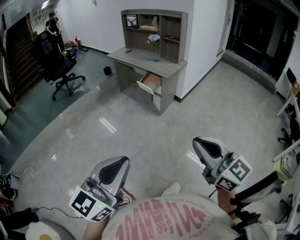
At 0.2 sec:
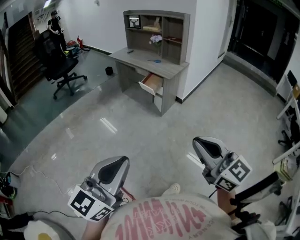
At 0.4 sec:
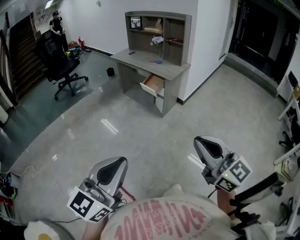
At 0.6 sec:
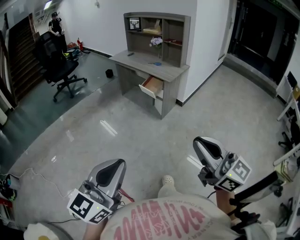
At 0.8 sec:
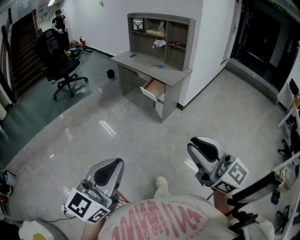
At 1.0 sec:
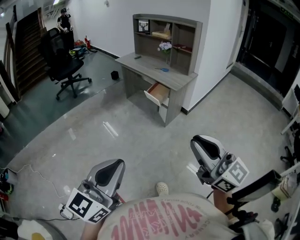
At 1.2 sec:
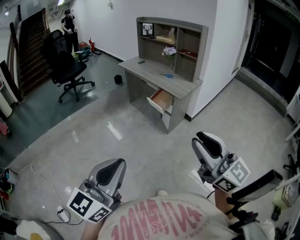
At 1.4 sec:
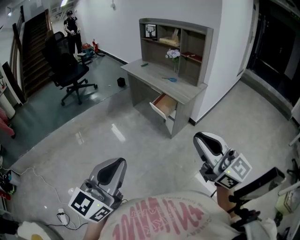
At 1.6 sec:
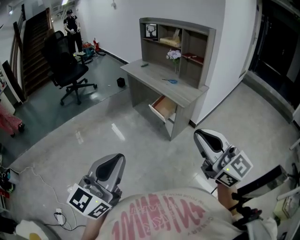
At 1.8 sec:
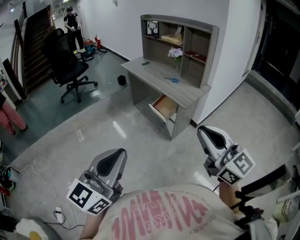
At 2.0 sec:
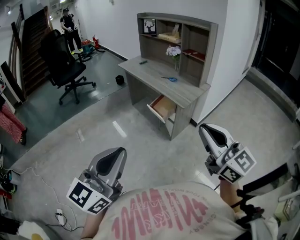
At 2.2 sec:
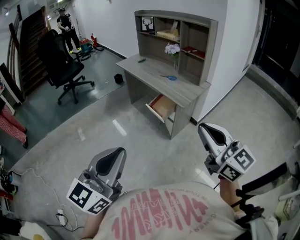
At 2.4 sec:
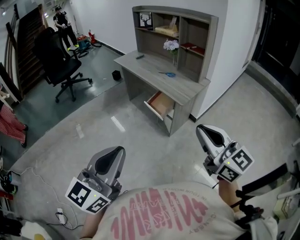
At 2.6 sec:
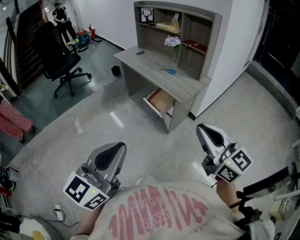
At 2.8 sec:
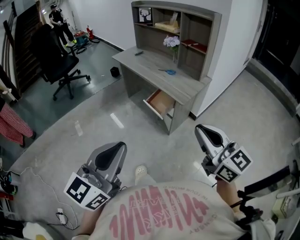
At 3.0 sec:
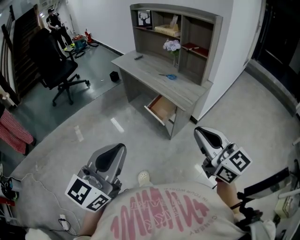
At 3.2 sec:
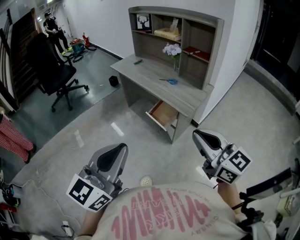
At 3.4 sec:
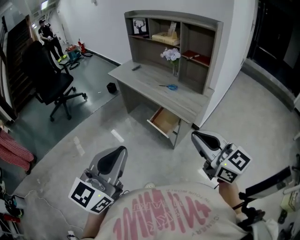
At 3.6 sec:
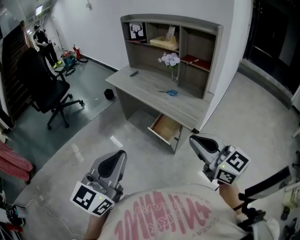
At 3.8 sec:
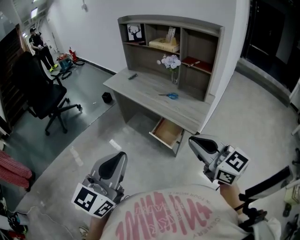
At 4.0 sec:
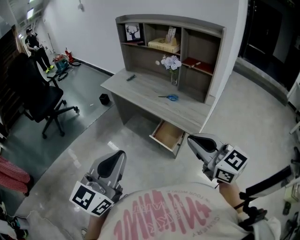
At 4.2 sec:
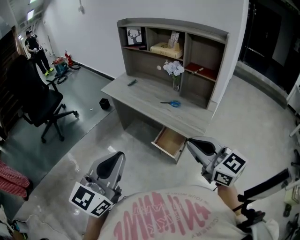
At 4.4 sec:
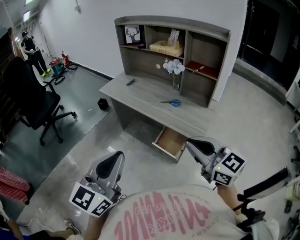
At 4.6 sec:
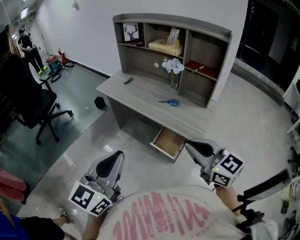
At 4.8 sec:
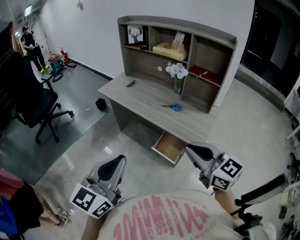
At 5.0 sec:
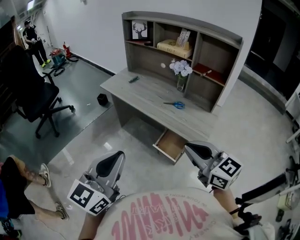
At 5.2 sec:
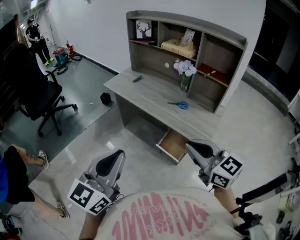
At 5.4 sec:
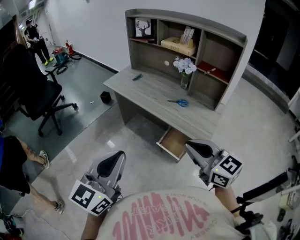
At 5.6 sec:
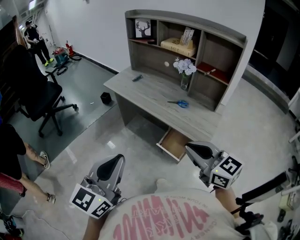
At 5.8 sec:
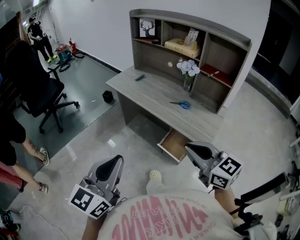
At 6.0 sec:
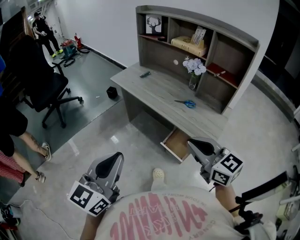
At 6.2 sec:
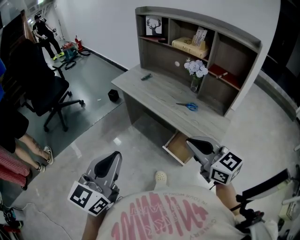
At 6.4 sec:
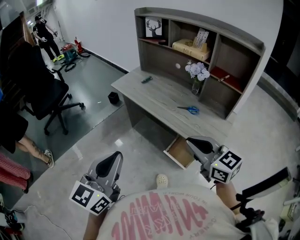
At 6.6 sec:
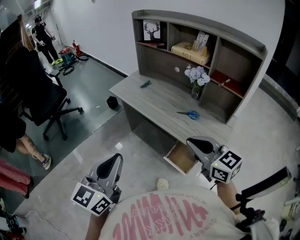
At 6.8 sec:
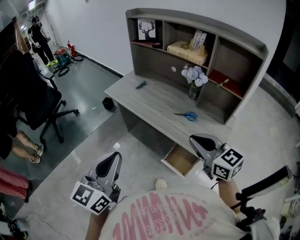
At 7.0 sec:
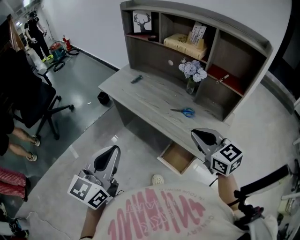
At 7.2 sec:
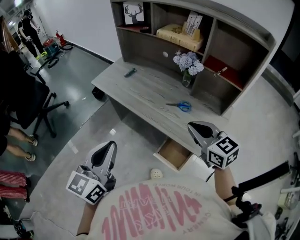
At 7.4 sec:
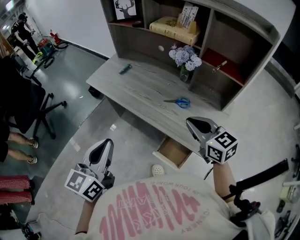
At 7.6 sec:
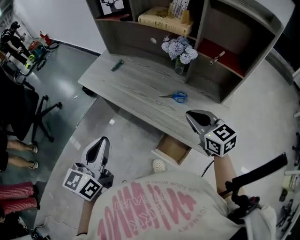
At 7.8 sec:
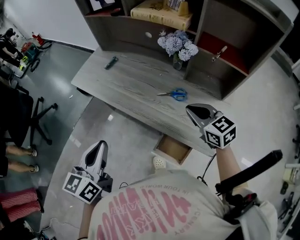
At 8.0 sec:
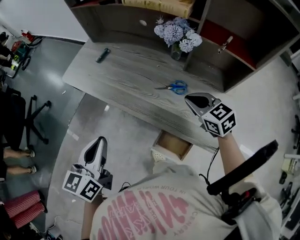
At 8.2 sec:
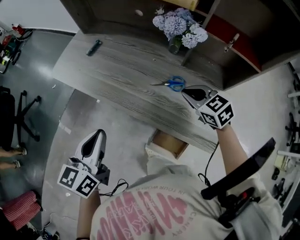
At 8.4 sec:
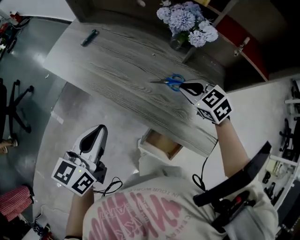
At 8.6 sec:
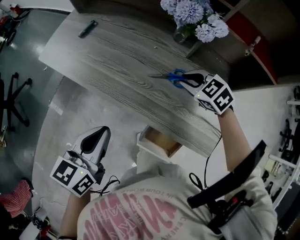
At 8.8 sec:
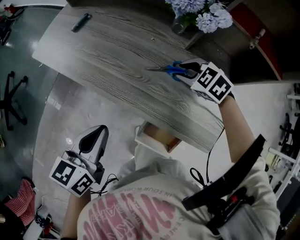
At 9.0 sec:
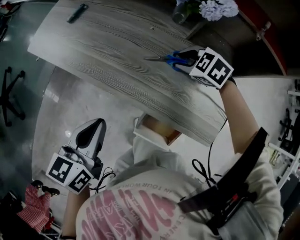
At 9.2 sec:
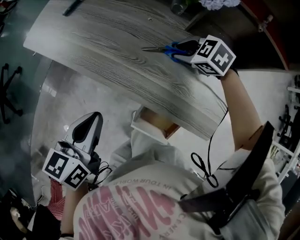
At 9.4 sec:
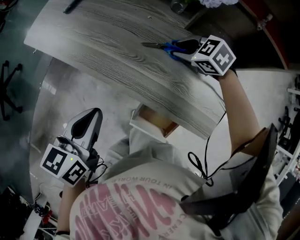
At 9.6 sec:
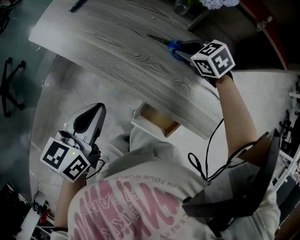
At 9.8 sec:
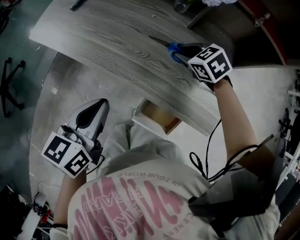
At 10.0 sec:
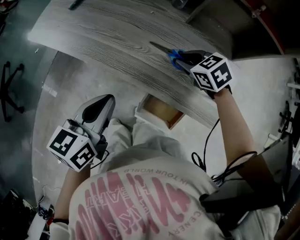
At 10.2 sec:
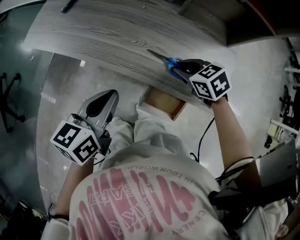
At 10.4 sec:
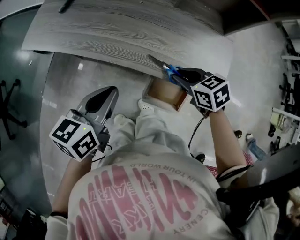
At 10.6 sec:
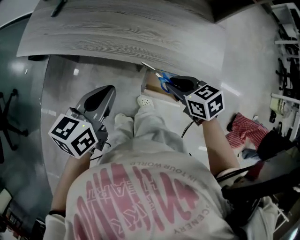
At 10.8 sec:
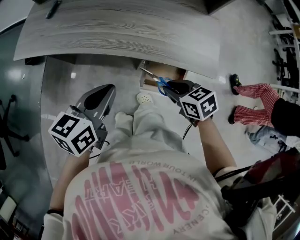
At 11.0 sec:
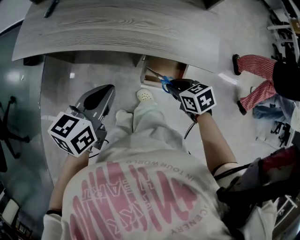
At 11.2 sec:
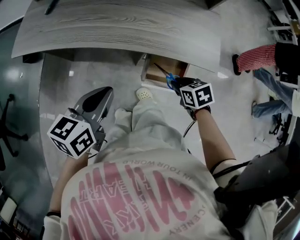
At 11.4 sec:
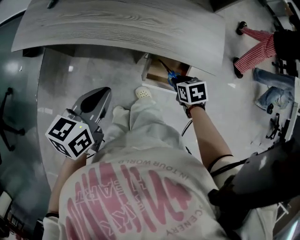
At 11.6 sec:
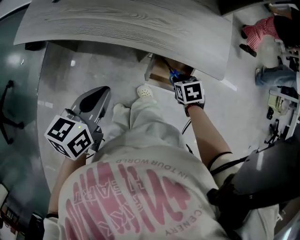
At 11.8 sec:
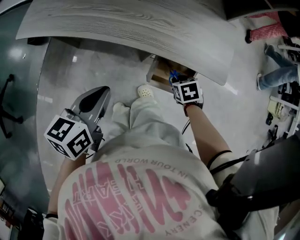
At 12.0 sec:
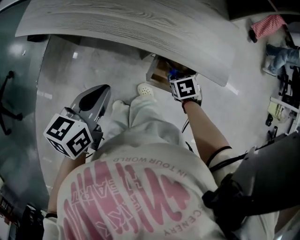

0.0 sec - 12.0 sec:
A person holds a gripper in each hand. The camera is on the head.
0.0 sec - 1.6 sec: Both grippers travel together forward, about 30 cm.
1.6 sec - 3.0 sec: Both grippers move forward, about 15 cm.
3.0 sec - 4.4 sec: Both grippers travel together forward and to the left, about 30 cm.
4.4 sec - 6.0 sec: The right gripper goes roughly 5 cm forward. The left gripper moves roughly 5 cm.
6.0 sec - 7.6 sec: The right gripper goes approximately 30 cm forward, to the right and downward. The left gripper heads forward, covering roughly 25 cm.
7.6 sec - 9.0 sec: The left gripper goes roughly 20 cm downward, forward and to the right, and swivels approximately 30 degrees. The right gripper travels downward and forward by roughly 25 cm, tilts its fingers roughly 40 degrees downward, and opens.
9.0 sec - 10.4 sec: The right gripper heads backward, covering some 20 cm, and rolls clockwise, seen from behind, by some 40 degrees.
10.4 sec - 12.0 sec: The left gripper shifts by roughly 5 cm. The right gripper travels downward by roughly 15 cm, and rotates roughly 30 degrees.

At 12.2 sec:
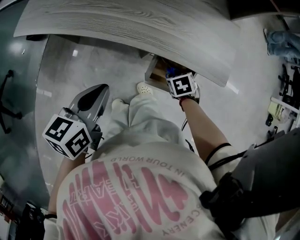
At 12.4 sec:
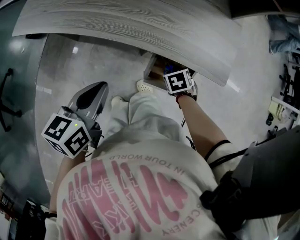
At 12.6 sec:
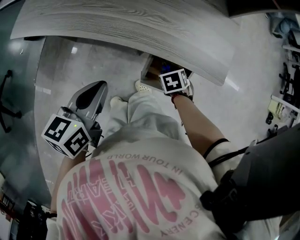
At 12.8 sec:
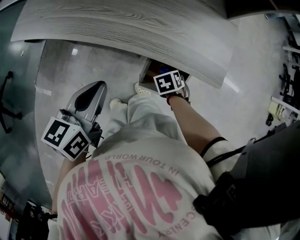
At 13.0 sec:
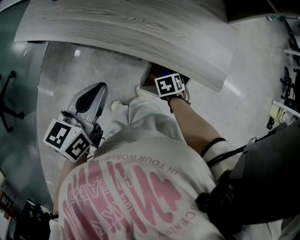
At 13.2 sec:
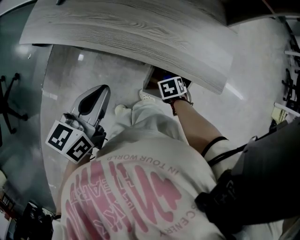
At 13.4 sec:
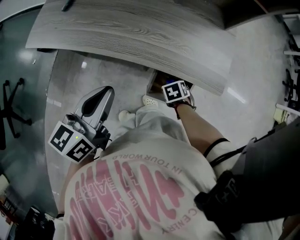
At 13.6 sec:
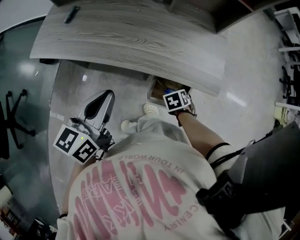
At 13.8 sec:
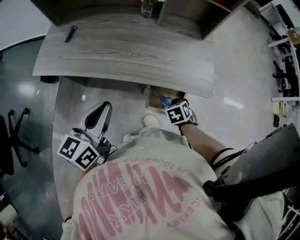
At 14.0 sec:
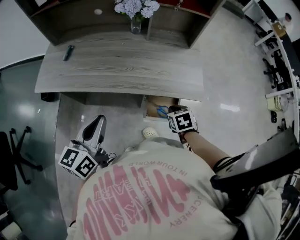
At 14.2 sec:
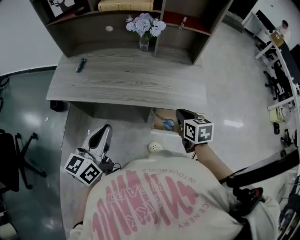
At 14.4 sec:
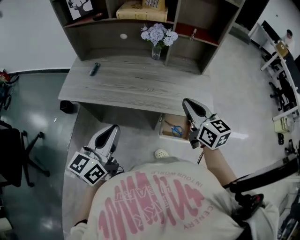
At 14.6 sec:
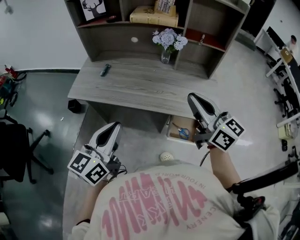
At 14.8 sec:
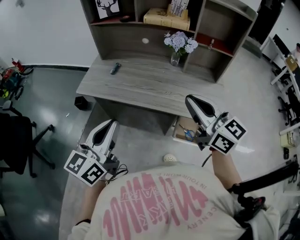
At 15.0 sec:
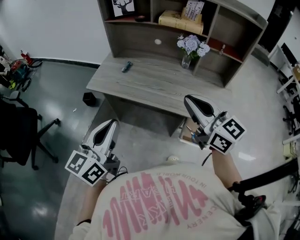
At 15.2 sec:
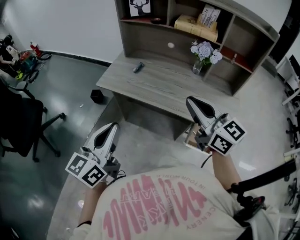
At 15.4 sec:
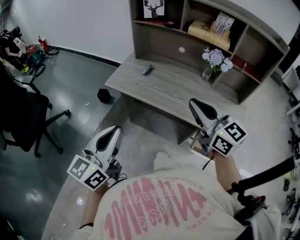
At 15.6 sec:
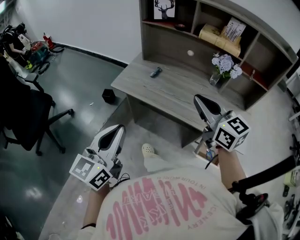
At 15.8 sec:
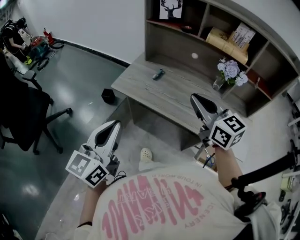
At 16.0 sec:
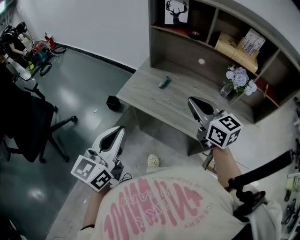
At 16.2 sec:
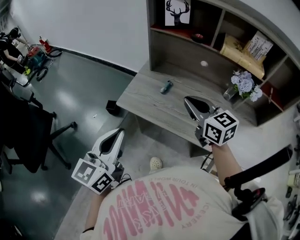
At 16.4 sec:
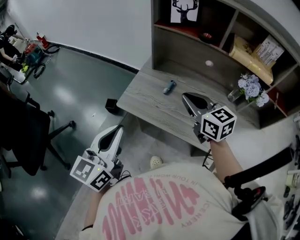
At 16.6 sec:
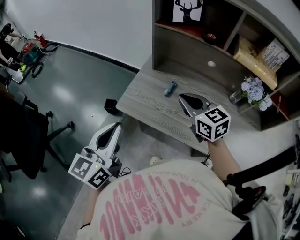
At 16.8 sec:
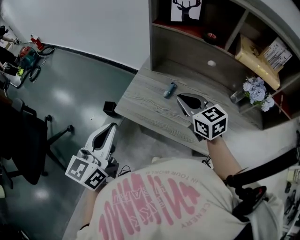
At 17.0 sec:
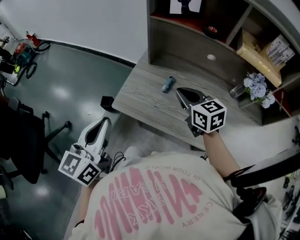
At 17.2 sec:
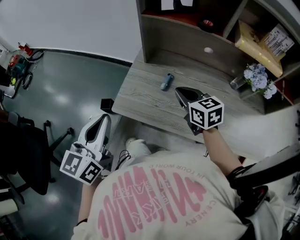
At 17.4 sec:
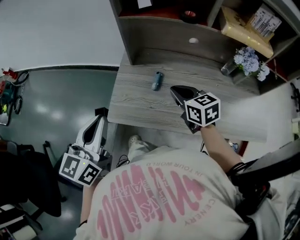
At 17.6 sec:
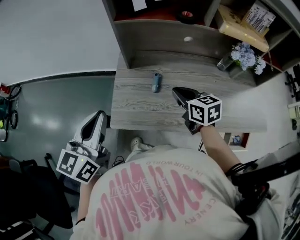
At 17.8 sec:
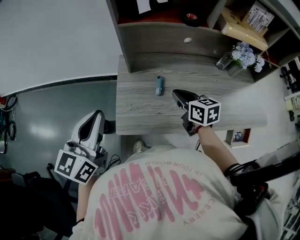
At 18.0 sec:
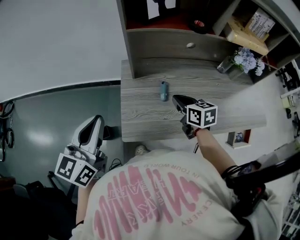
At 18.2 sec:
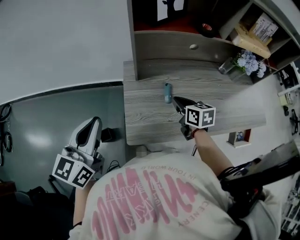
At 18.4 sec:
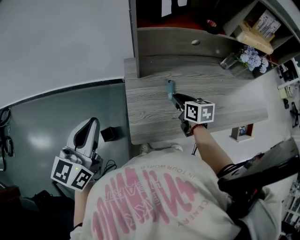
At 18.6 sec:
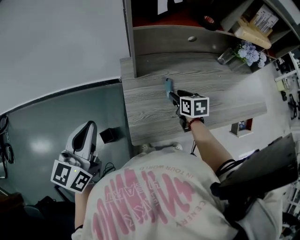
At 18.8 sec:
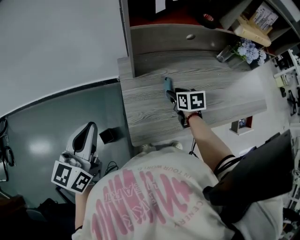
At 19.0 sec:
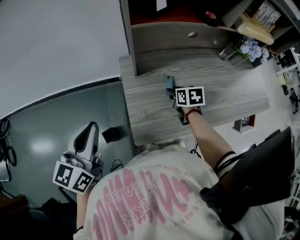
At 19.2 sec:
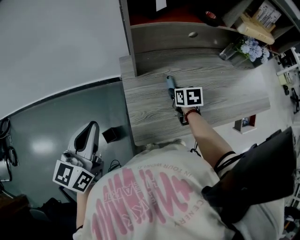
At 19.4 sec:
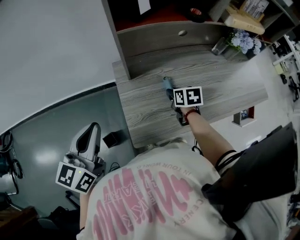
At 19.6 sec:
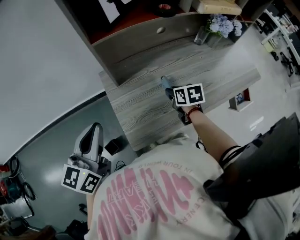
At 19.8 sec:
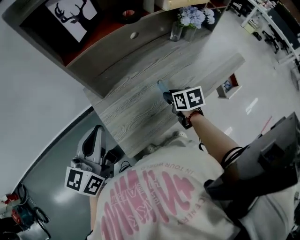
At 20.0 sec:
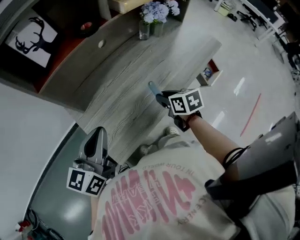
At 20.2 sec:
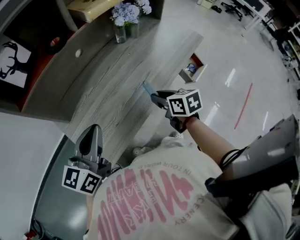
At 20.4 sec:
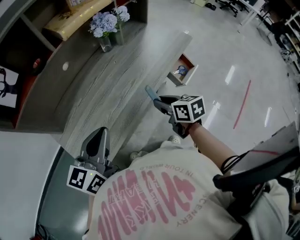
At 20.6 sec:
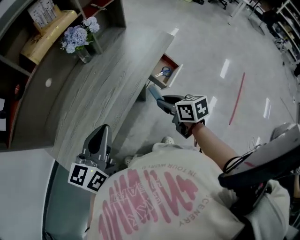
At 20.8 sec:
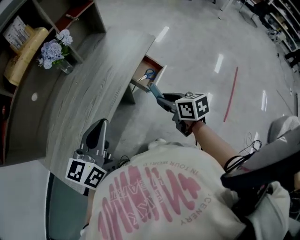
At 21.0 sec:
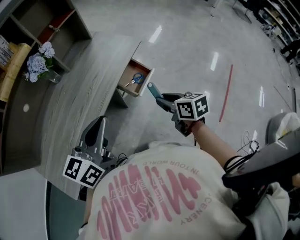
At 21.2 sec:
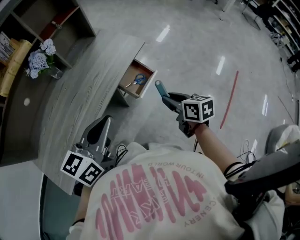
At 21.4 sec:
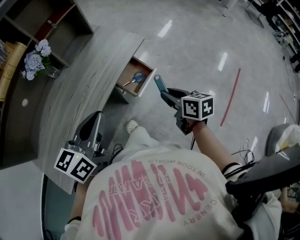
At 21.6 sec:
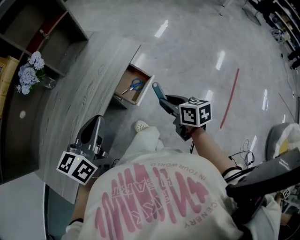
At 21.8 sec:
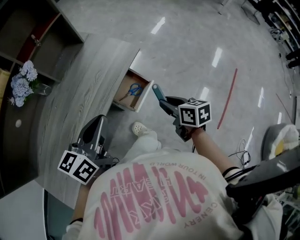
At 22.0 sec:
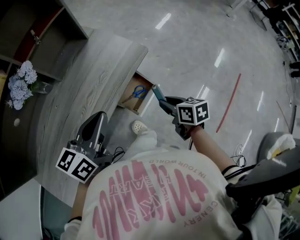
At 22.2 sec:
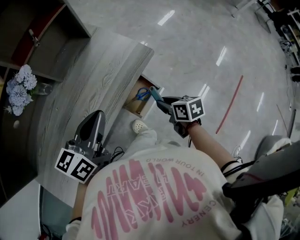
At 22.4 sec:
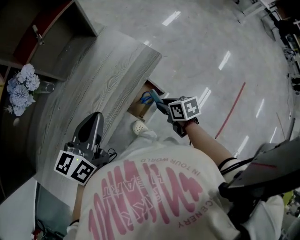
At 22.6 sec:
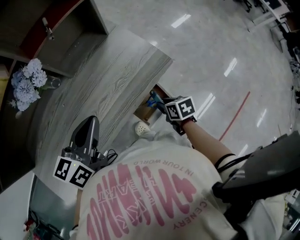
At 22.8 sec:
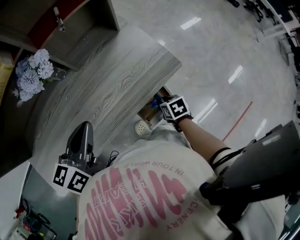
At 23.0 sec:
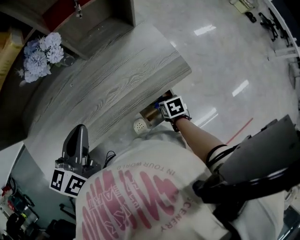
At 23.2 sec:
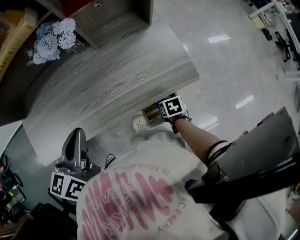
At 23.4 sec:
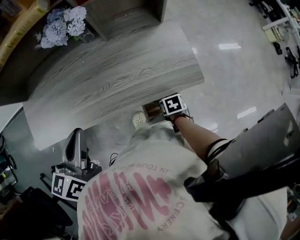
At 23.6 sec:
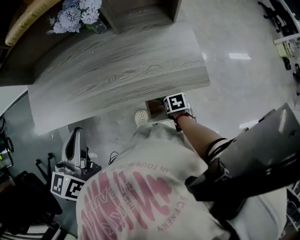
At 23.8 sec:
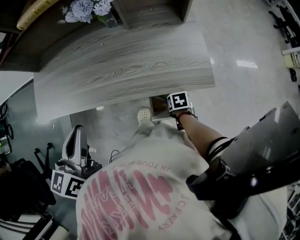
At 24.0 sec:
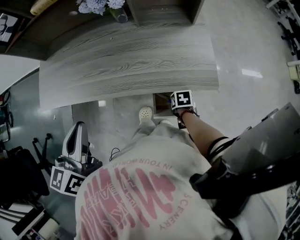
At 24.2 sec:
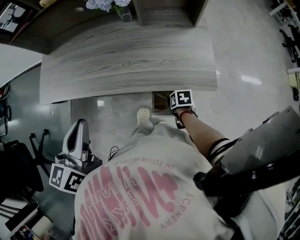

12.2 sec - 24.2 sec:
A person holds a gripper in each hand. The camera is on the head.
12.2 sec - 13.8 sec: Both grippers travel together upward, about 10 cm. The right gripper opens and closes again. Meanwhile the left gripper turns by roughly 20 degrees.
13.8 sec - 15.2 sec: The left gripper ends up roughly 25 cm from where it was, and rotates about 20 degrees, while the right gripper moves upward, some 40 cm, and points its fingers roughly 70 degrees further upward.
15.2 sec - 16.6 sec: The two grippers go roughly 30 cm forward and to the left.
16.6 sec - 18.2 sec: The left gripper changes place by approximately 25 cm, and changes its angle by roughly 30 degrees; the right gripper heads downward, covering about 15 cm, and turns by roughly 50 degrees.
18.2 sec - 19.8 sec: The left gripper goes roughly 10 cm to the right and forward, and swivels some 30 degrees, while the right gripper travels to the right by about 10 cm, swivels roughly 30 degrees, and opens up.
19.8 sec - 21.2 sec: The two grippers travel together, about 50 cm. The right gripper turns by roughly 30 degrees; the left gripper changes its angle by approximately 40 degrees.
21.2 sec - 22.6 sec: The left gripper goes roughly 20 cm forward, and turns by approximately 20 degrees. The right gripper moves forward and downward, roughly 25 cm, and turns by about 30 degrees.
22.6 sec - 24.2 sec: The right gripper travels downward by about 10 cm, rotates about 40 degrees, and opens its fingers. Meanwhile the left gripper changes place by approximately 20 cm, and rotates roughly 60 degrees.
